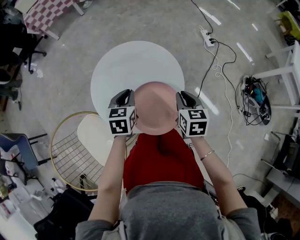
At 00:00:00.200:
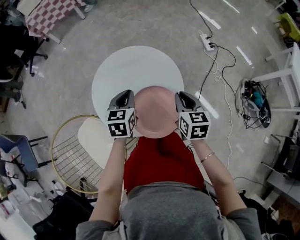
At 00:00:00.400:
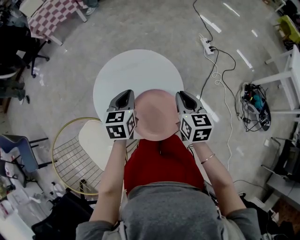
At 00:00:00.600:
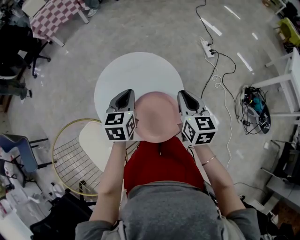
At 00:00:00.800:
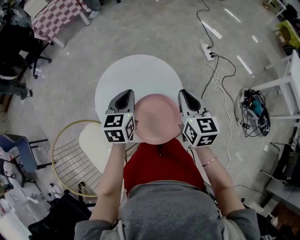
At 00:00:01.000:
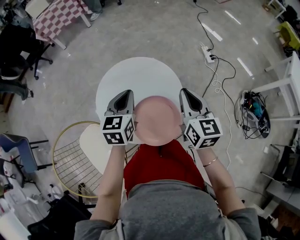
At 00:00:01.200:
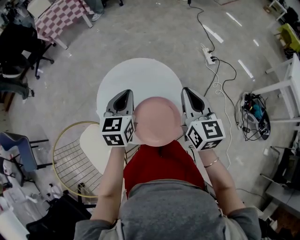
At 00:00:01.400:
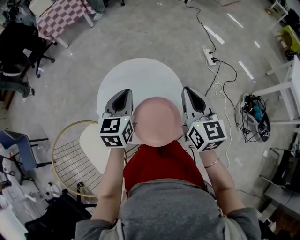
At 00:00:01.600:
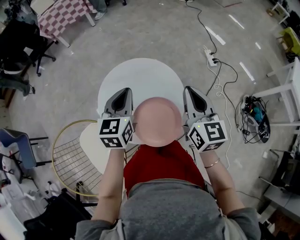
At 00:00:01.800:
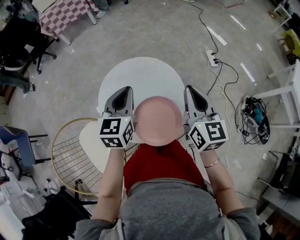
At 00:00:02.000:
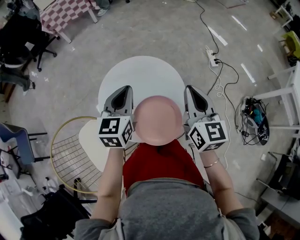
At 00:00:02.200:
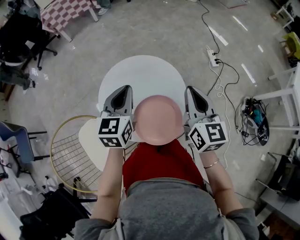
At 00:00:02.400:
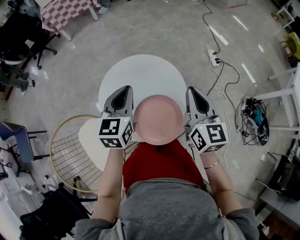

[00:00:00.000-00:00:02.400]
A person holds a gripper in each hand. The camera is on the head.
00:00:00.000 to 00:00:01.200: The two grippers go approximately 15 cm upward. The right gripper changes its angle by some 30 degrees.
00:00:01.200 to 00:00:02.400: The grippers stay close to where they were, moving slightly.

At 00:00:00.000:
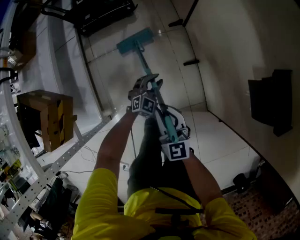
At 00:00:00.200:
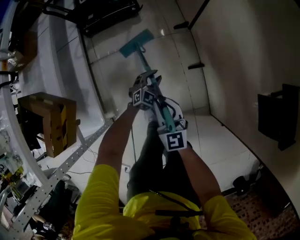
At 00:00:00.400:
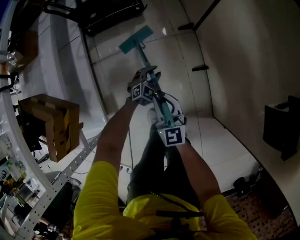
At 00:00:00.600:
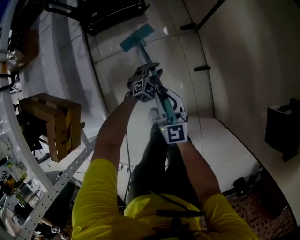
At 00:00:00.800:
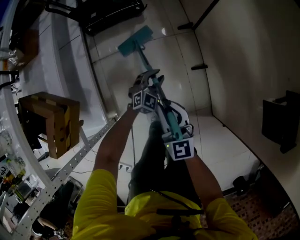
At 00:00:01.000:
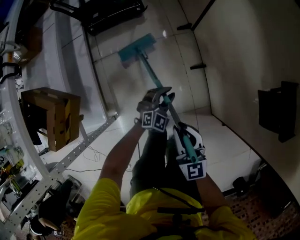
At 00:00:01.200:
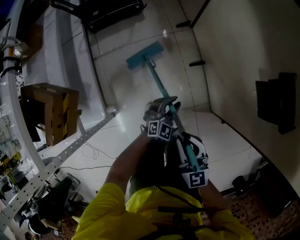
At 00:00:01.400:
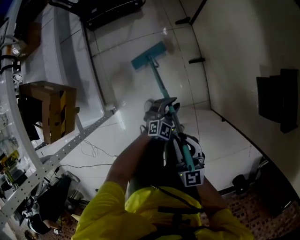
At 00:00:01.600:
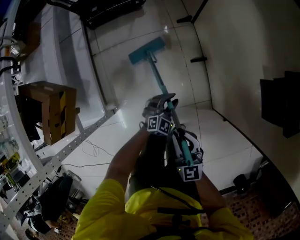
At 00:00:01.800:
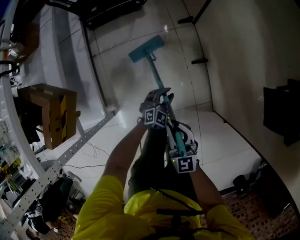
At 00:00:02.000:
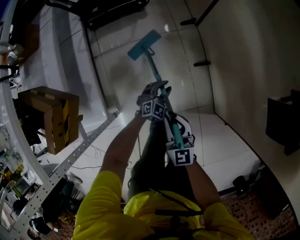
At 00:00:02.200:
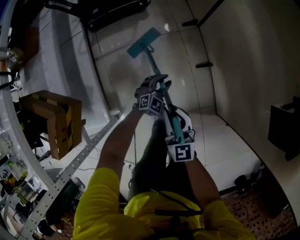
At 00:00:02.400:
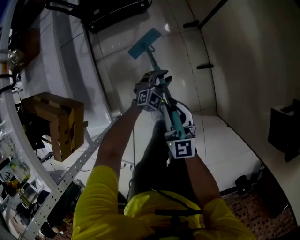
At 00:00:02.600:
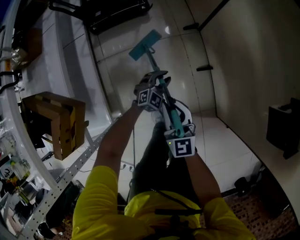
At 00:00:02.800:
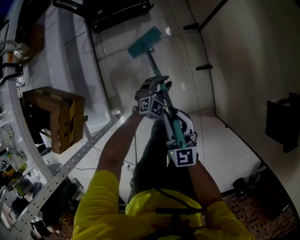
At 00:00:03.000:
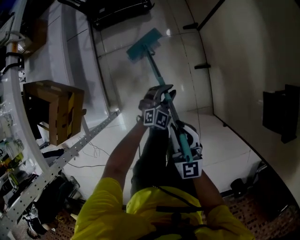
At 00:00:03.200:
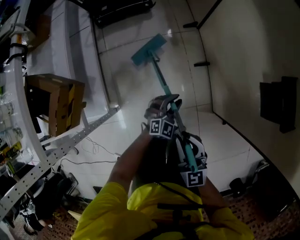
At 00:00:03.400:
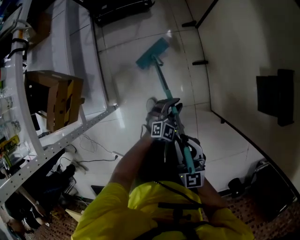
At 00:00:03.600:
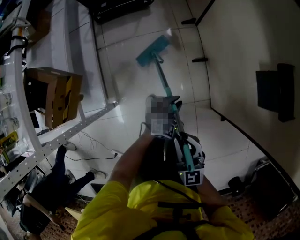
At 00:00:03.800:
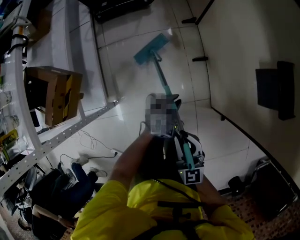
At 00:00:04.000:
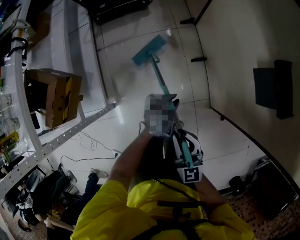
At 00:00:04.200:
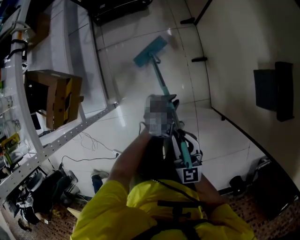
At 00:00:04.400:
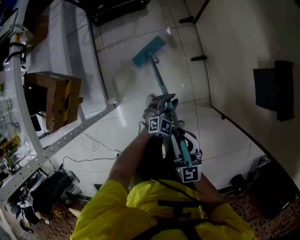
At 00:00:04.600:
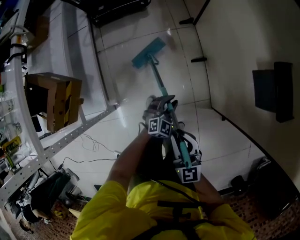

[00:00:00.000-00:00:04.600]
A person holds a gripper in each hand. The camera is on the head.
00:00:00.000 to 00:00:01.600: The right gripper heads backward, covering some 10 cm. The left gripper goes roughly 15 cm backward and to the right.
00:00:01.600 to 00:00:03.000: The left gripper moves to the left, forward and upward, roughly 10 cm, while the right gripper moves to the left, approximately 5 cm, and goes forward and returns, roughly 20 cm each way.
00:00:03.000 to 00:00:04.600: The grippers both shift backward and to the right by roughly 10 cm.

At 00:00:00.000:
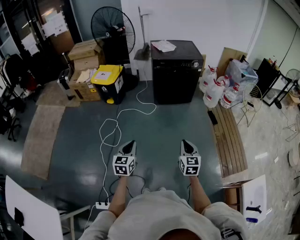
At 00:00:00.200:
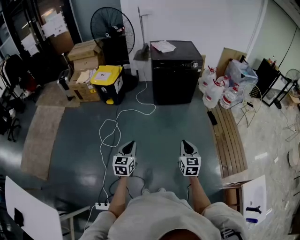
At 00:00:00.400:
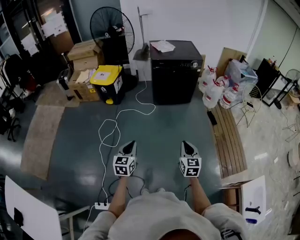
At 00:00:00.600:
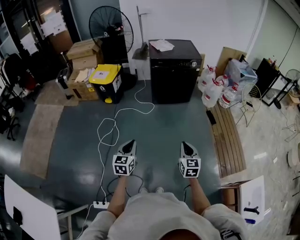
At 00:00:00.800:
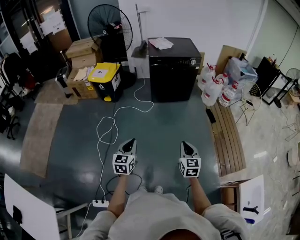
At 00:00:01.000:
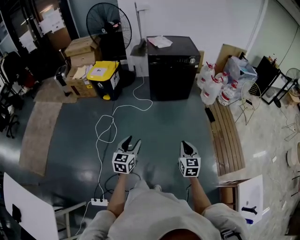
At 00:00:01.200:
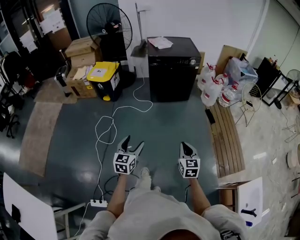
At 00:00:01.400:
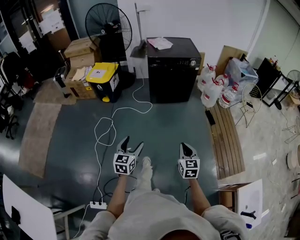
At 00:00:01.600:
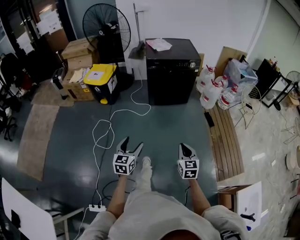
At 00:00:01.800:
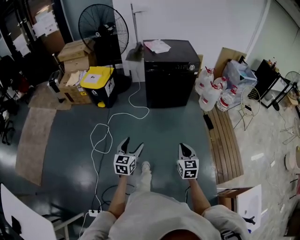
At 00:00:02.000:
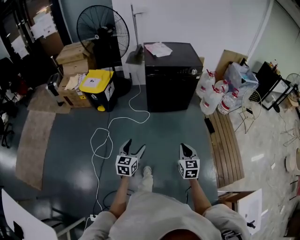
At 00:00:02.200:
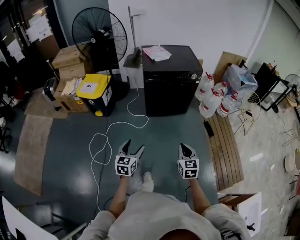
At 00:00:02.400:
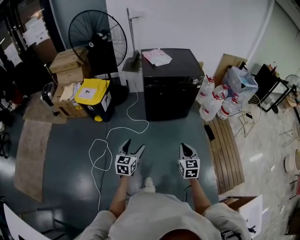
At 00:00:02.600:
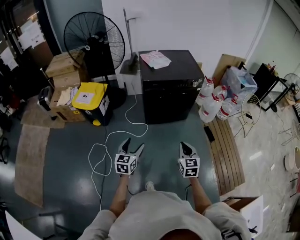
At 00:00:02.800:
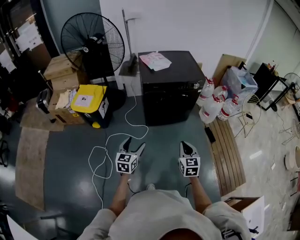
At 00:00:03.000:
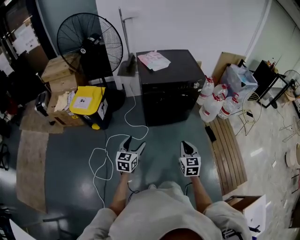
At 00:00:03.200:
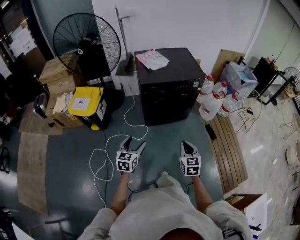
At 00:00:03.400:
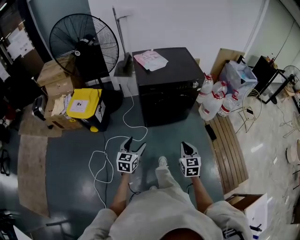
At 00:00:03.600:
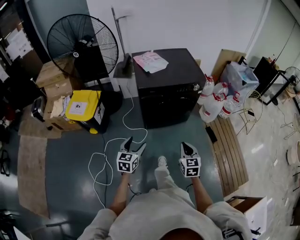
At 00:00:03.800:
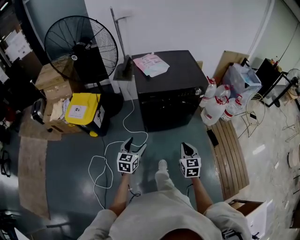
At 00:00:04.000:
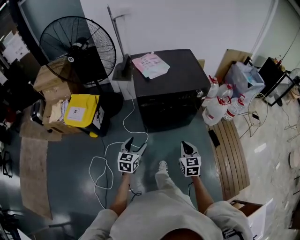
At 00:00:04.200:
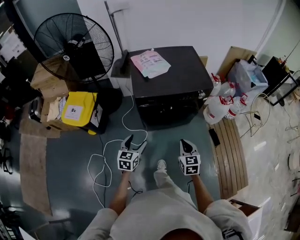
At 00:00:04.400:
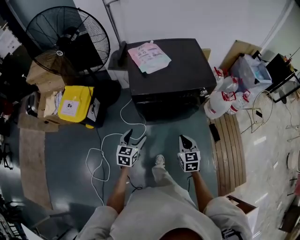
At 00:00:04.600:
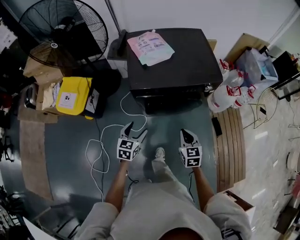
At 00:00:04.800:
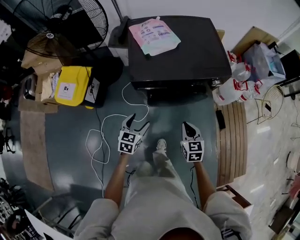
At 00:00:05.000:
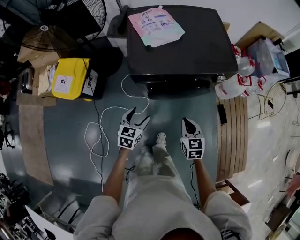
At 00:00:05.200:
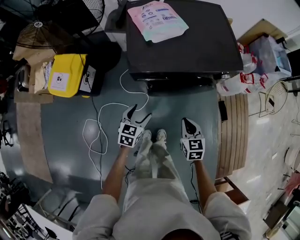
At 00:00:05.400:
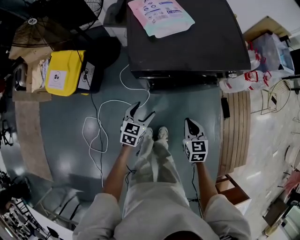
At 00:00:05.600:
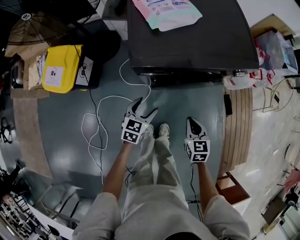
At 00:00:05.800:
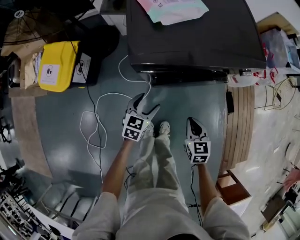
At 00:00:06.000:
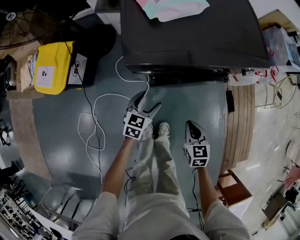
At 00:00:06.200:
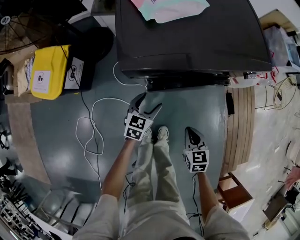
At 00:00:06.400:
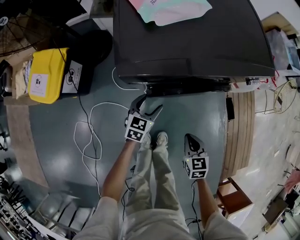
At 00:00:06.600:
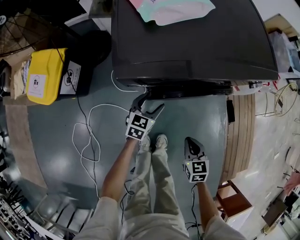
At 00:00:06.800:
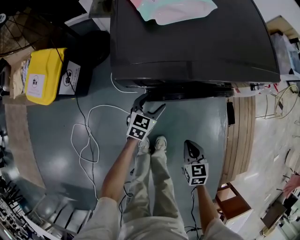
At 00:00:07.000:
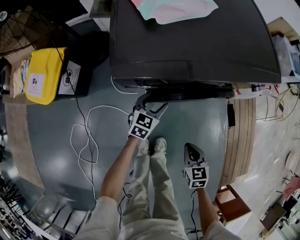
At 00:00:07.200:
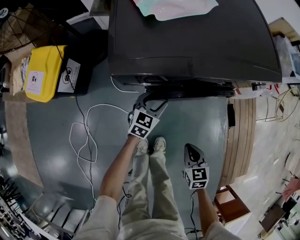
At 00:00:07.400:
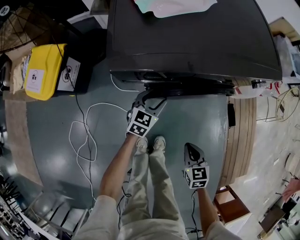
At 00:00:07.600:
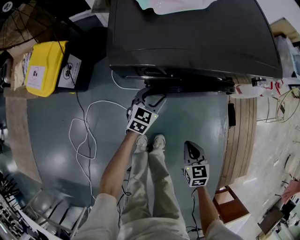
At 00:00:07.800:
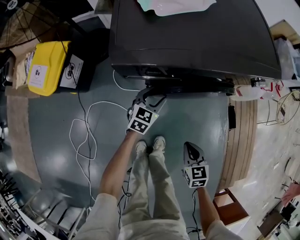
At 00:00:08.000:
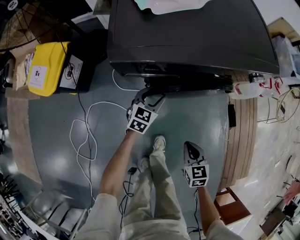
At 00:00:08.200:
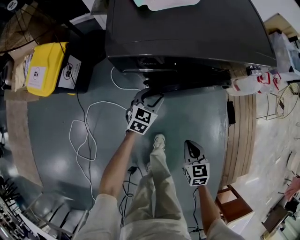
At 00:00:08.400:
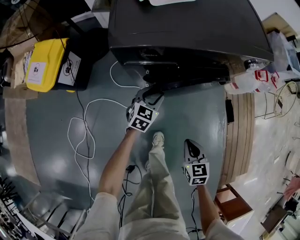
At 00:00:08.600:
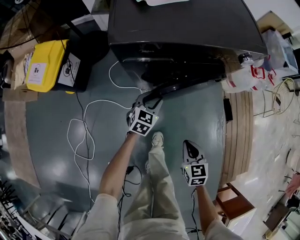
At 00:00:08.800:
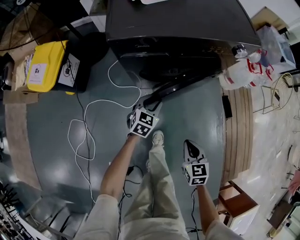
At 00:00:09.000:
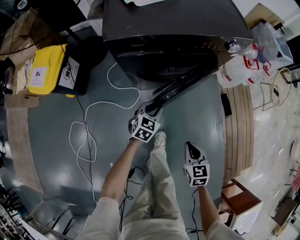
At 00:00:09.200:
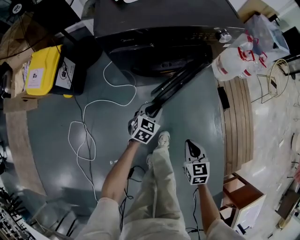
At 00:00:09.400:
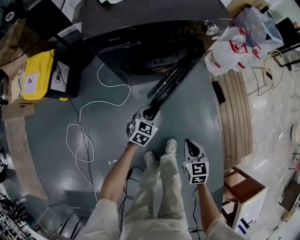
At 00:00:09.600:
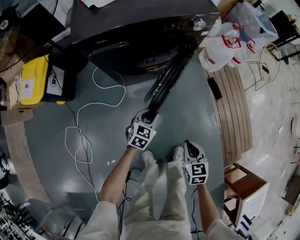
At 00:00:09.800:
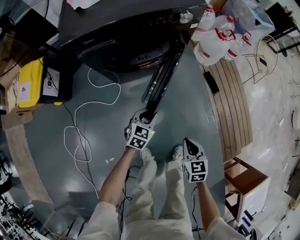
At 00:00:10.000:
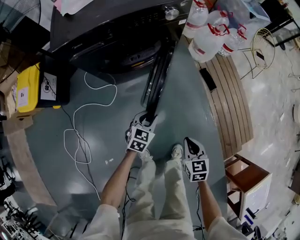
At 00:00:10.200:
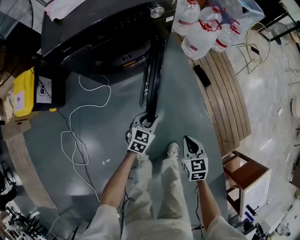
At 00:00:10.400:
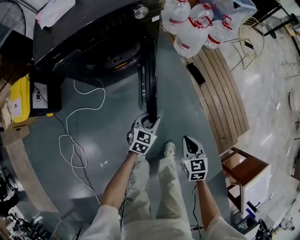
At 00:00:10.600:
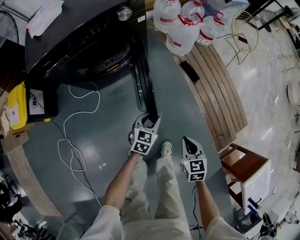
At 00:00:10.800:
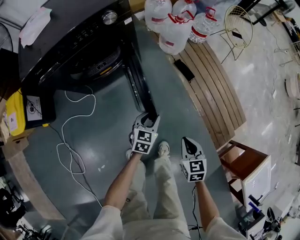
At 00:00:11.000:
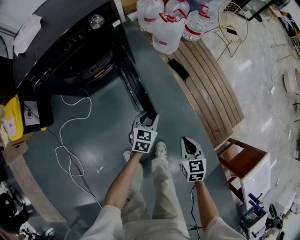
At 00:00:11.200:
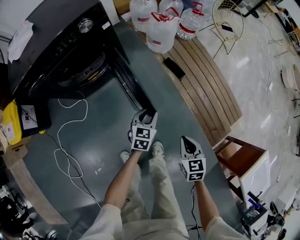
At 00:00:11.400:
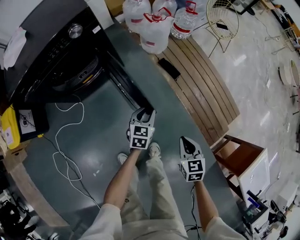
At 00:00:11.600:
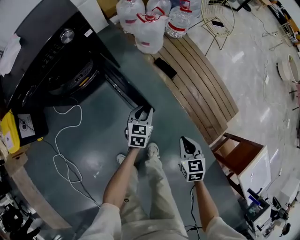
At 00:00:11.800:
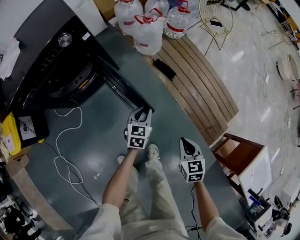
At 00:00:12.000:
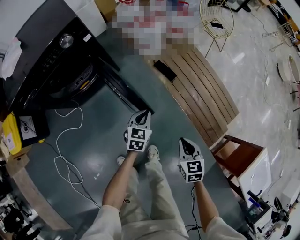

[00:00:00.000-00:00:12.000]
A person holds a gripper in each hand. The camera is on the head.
00:00:00.000 to 00:00:01.600: Both grippers travel together forward and to the right, roughly 10 cm. The left gripper opens its fingers.
00:00:01.600 to 00:00:03.000: The grippers both shift forward by about 40 cm.
00:00:03.000 to 00:00:04.400: Both grippers travel together forward, about 30 cm.
00:00:04.400 to 00:00:06.000: The left gripper moves downward and forward, approximately 30 cm. Meanwhile the right gripper moves downward, about 25 cm.
00:00:06.000 to 00:00:07.600: The left gripper goes approximately 10 cm downward and forward, while the right gripper goes approximately 10 cm downward.
00:00:07.600 to 00:00:09.000: Both grippers travel together backward, approximately 15 cm. The left gripper closes its fingers.
00:00:09.000 to 00:00:10.400: Both grippers move to the right, approximately 30 cm.
00:00:10.400 to 00:00:12.000: The left gripper heads to the right and forward, covering roughly 25 cm, and closes; the right gripper travels to the right by about 20 cm.

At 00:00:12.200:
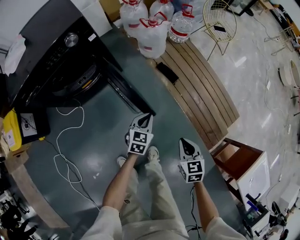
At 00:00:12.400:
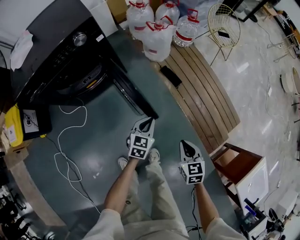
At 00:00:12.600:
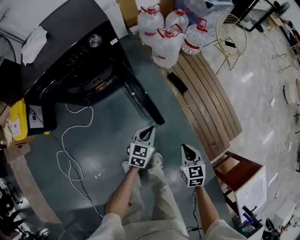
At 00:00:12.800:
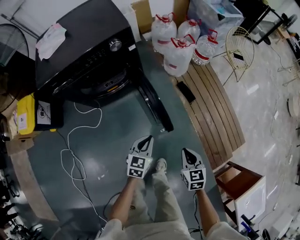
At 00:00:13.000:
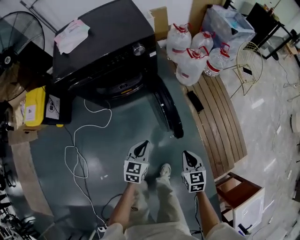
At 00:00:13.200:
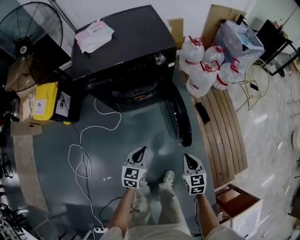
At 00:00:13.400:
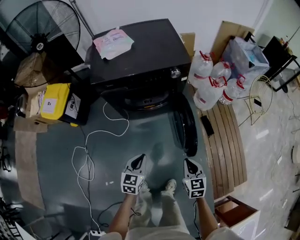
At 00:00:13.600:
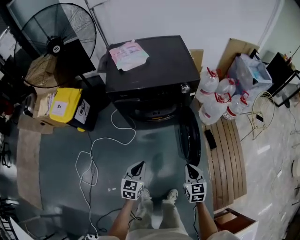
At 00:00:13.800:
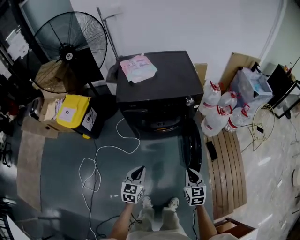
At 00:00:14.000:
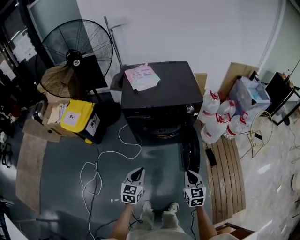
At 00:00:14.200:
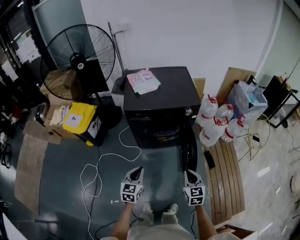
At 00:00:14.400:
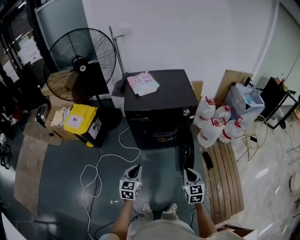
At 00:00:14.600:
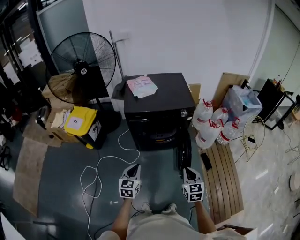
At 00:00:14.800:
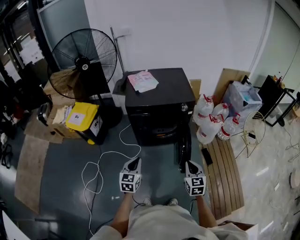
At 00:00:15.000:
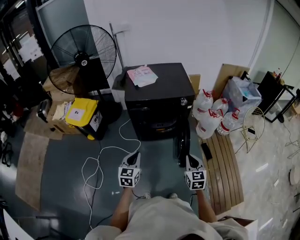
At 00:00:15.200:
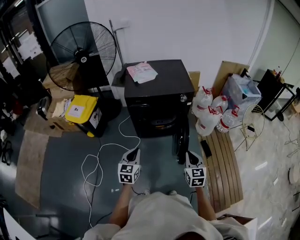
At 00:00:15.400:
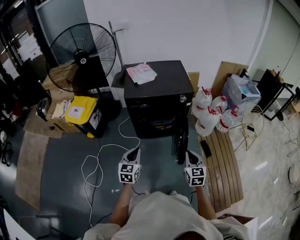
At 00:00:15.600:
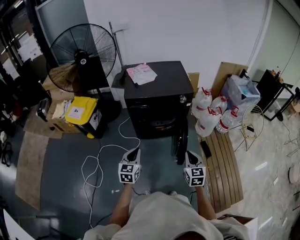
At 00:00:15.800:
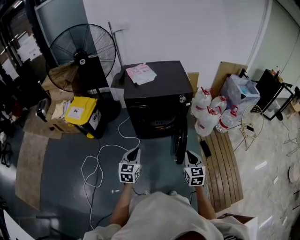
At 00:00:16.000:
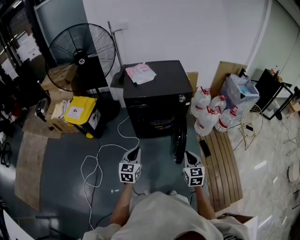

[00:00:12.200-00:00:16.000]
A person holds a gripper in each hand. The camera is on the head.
00:00:12.200 to 00:00:13.400: The left gripper changes place by approximately 40 cm, and swivels roughly 30 degrees; the right gripper changes place by some 30 cm, and changes its angle by some 20 degrees.
00:00:13.400 to 00:00:14.800: The right gripper is displaced upward by roughly 20 cm; the left gripper shifts approximately 25 cm upward, to the left and backward.
00:00:14.800 to 00:00:16.000: There are only small adjustments of the grippers.
